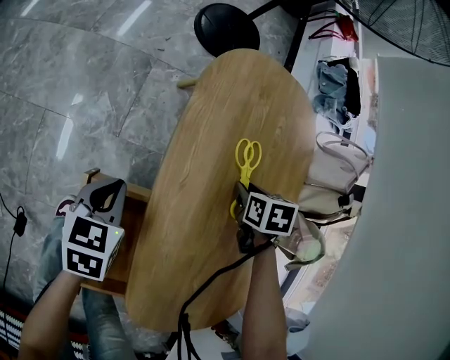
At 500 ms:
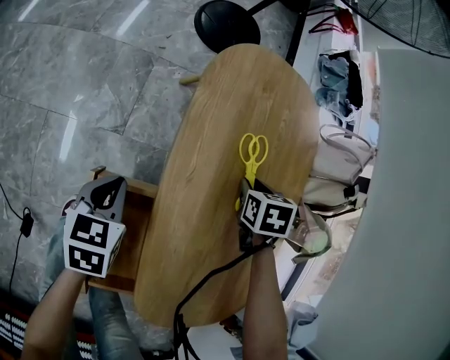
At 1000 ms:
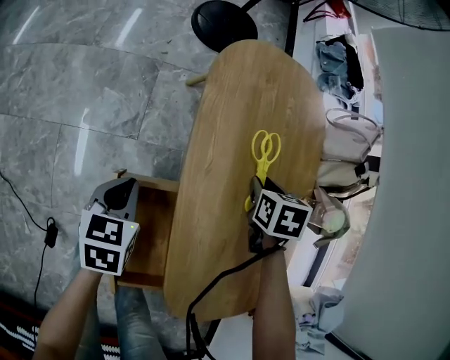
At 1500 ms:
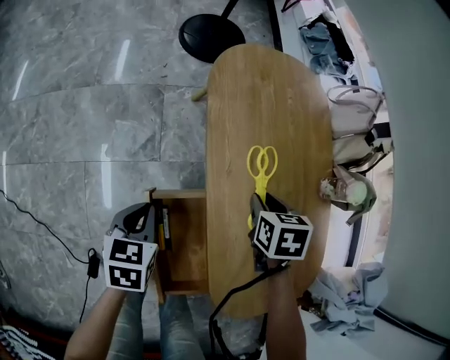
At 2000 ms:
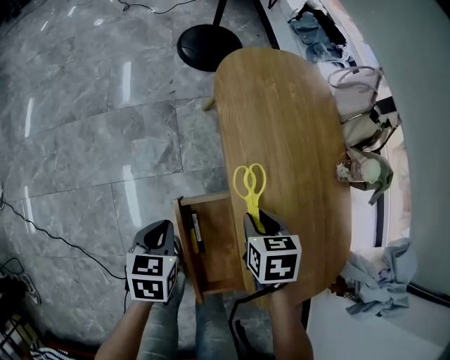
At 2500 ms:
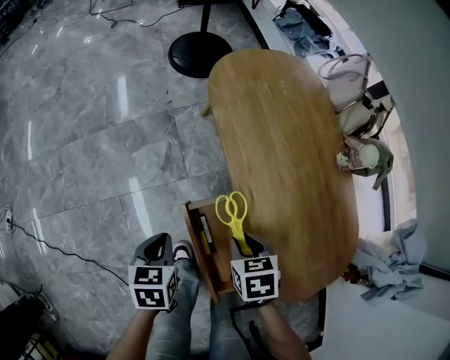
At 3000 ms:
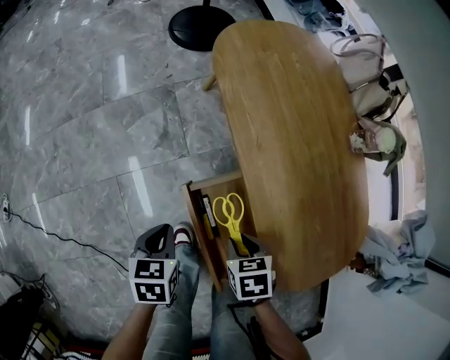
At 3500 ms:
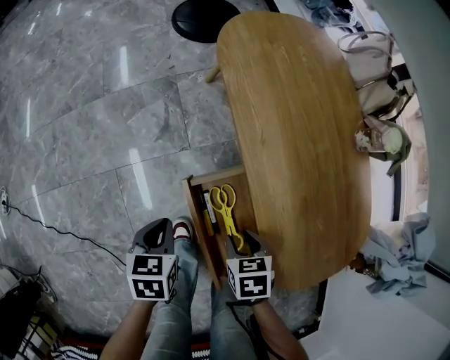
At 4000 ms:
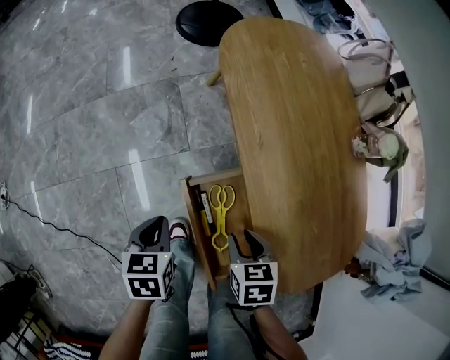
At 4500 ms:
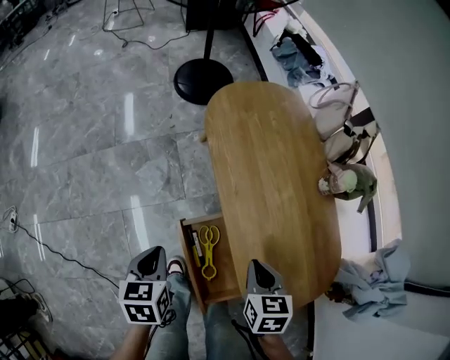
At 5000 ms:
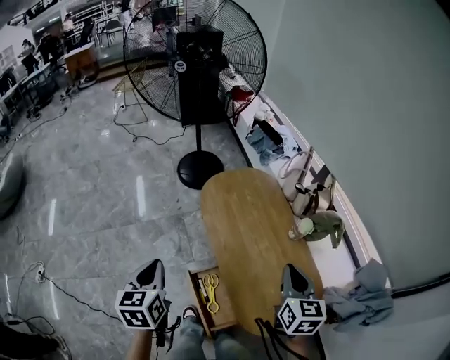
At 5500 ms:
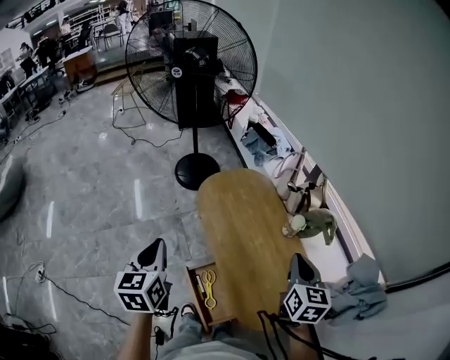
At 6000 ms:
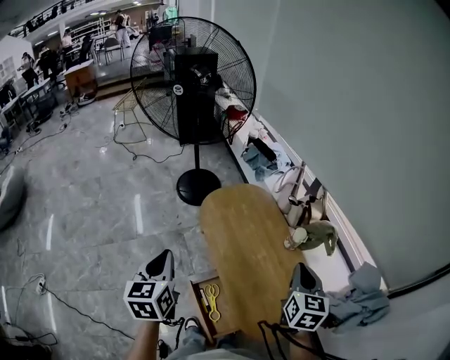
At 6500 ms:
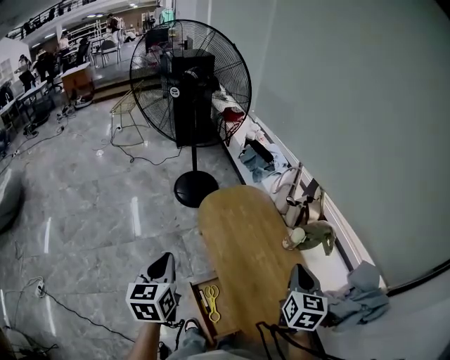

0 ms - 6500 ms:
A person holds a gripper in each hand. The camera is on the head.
0 ms - 2000 ms: The left gripper moves approximately 15 cm; the right gripper moves roughly 30 cm.
2000 ms - 4500 ms: The left gripper shifts some 10 cm upward. The right gripper shifts approximately 15 cm backward and upward, and closes.
4500 ms - 6500 ms: The left gripper heads upward, covering about 35 cm, and rotates some 30 degrees. Meanwhile the right gripper heads upward and to the right, covering roughly 35 cm, and rotates roughly 30 degrees.

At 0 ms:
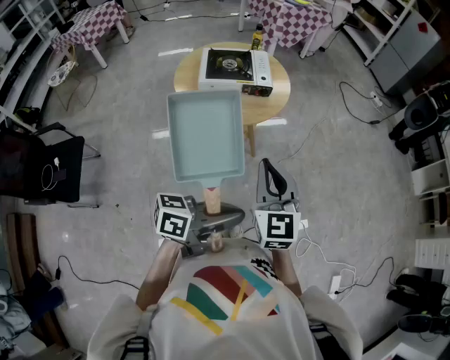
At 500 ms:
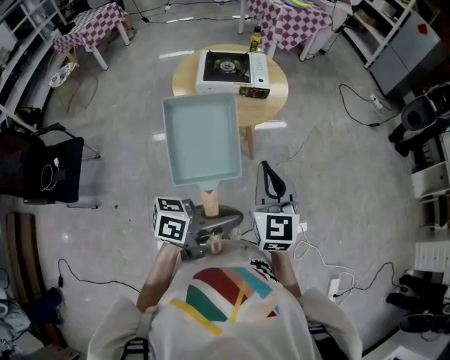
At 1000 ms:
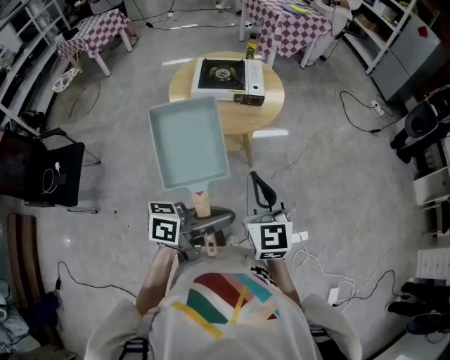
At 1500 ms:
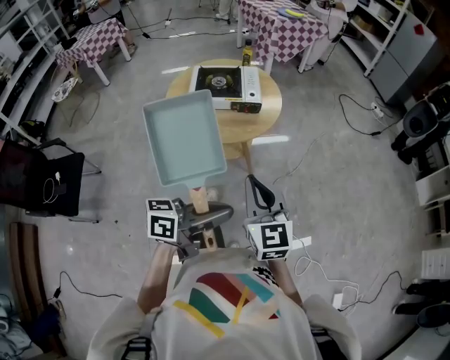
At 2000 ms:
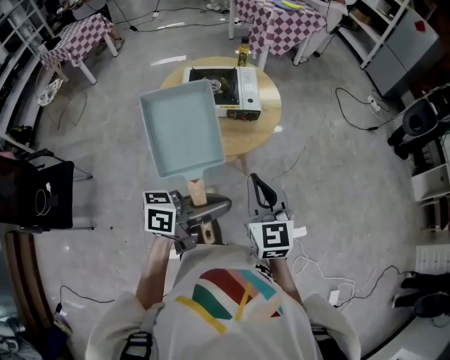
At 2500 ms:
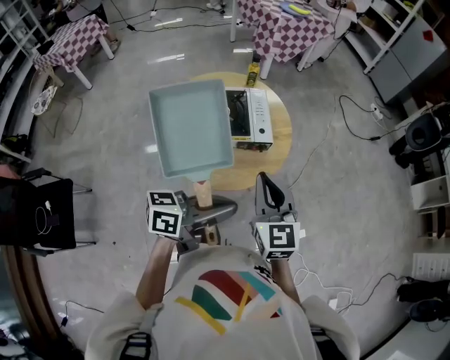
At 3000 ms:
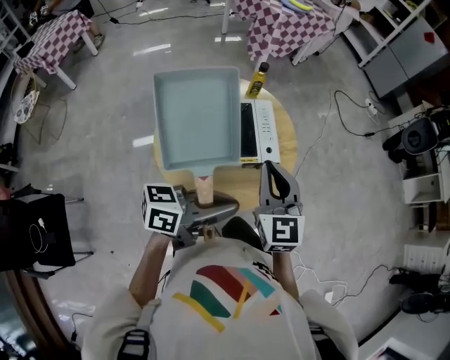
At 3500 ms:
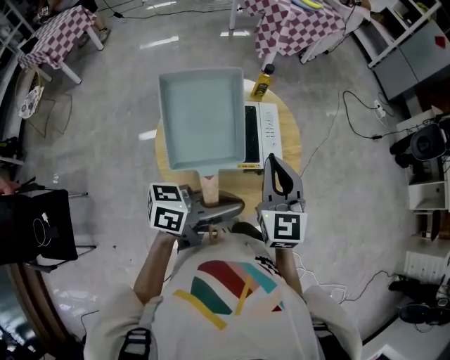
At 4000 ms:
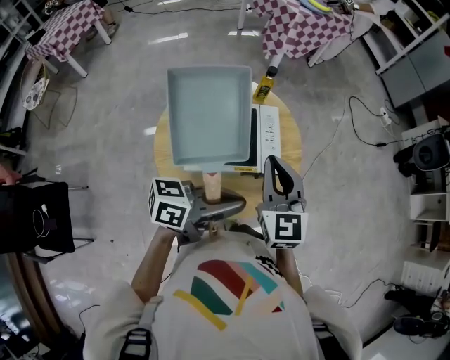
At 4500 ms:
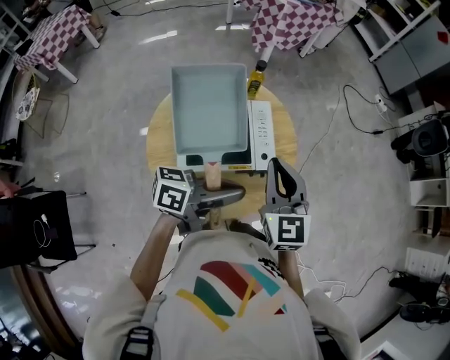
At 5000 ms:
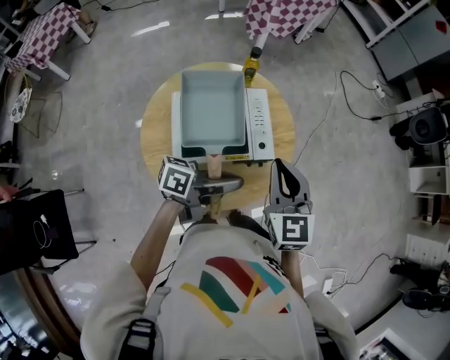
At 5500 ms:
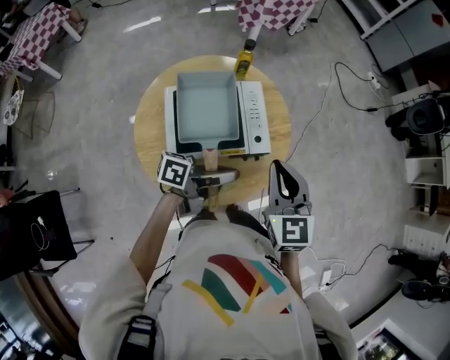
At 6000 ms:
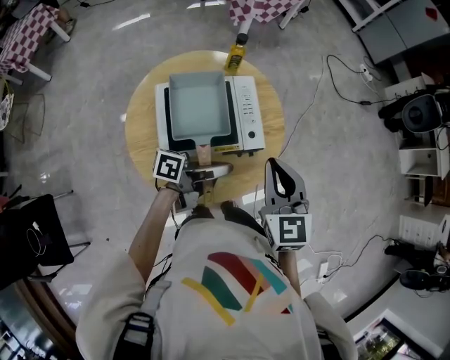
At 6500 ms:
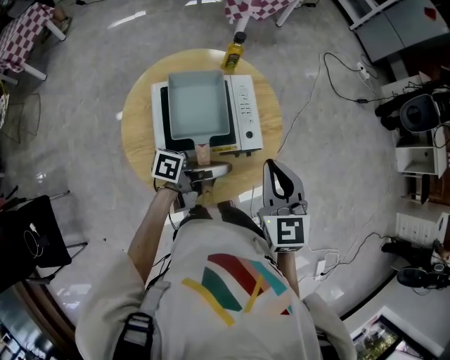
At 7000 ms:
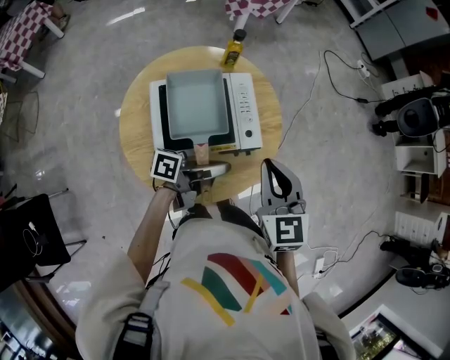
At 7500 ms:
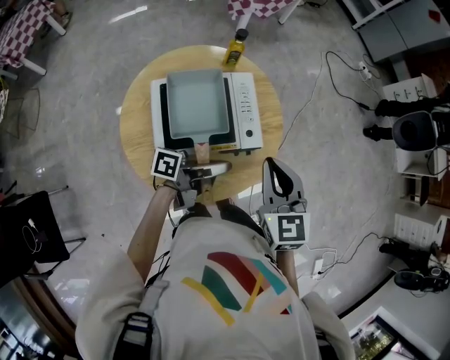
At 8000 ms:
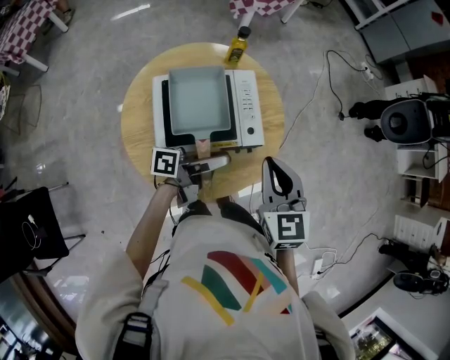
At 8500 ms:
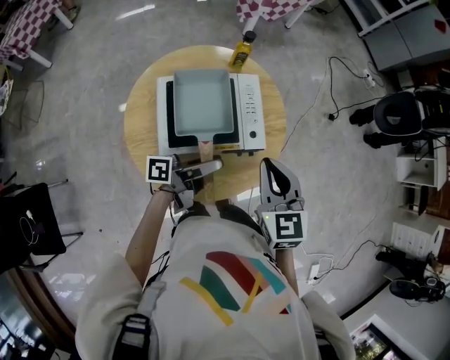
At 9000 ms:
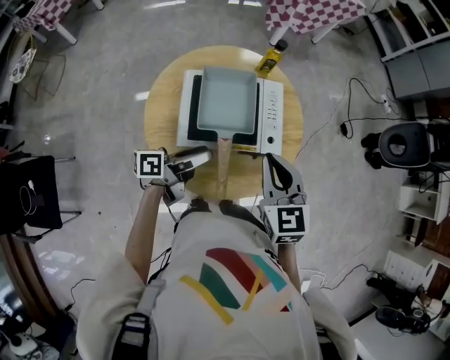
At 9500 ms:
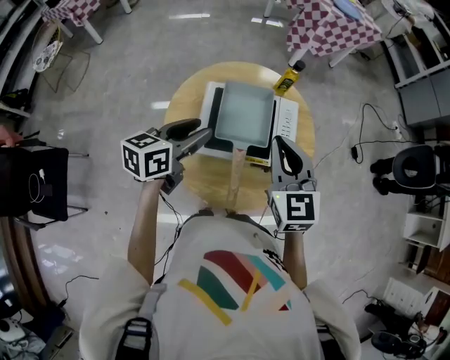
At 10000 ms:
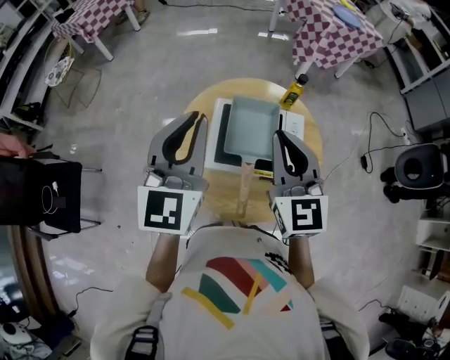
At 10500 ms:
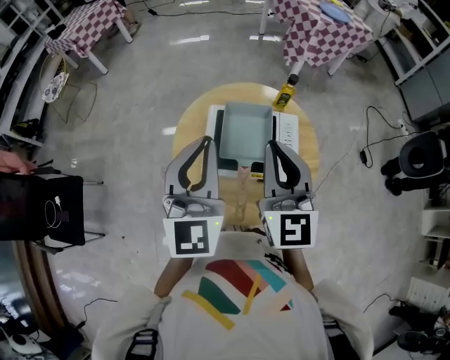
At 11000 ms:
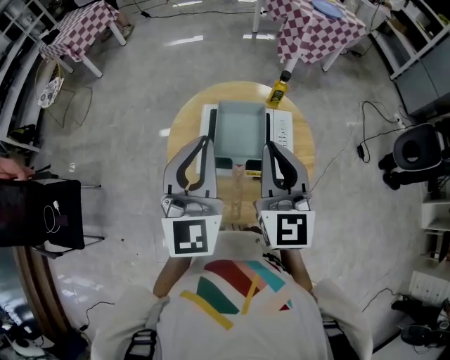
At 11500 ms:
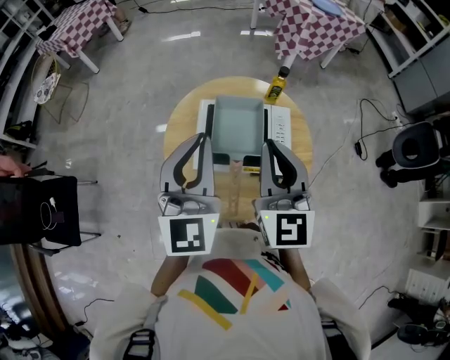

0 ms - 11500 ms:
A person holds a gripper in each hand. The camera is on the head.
0 ms - 2000 ms: The left gripper goes about 15 cm forward and to the left, while the right gripper heads forward, covering roughly 10 cm.
2000 ms - 4000 ms: Both grippers move forward and to the left, roughly 35 cm.
4000 ms - 6000 ms: The left gripper heads downward, covering about 15 cm, and rotates about 30 degrees; the right gripper heads to the right, covering approximately 5 cm.
6000 ms - 7500 ms: The grippers move only a little.
7500 ms - 9500 ms: The left gripper changes place by roughly 20 cm, rotates about 70 degrees, and opens its fingers, while the right gripper shifts by some 10 cm.
9500 ms - 11500 ms: The left gripper goes roughly 15 cm upward, swivels about 60 degrees, and closes. The right gripper travels upward by roughly 10 cm.

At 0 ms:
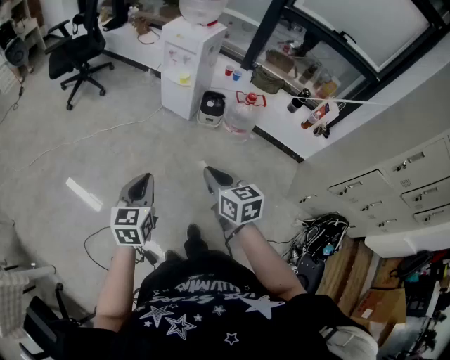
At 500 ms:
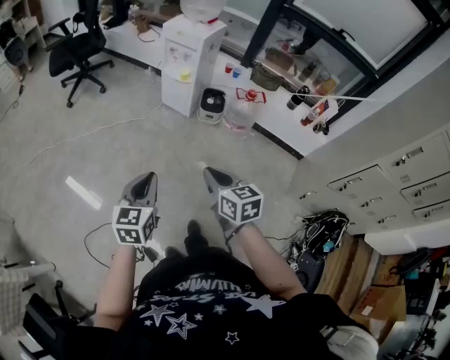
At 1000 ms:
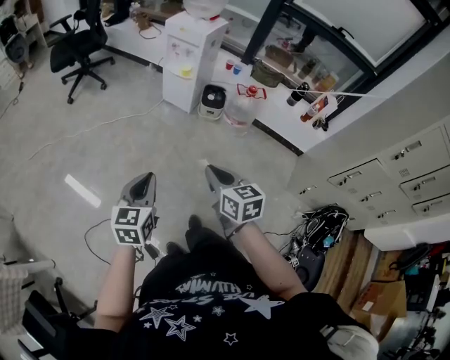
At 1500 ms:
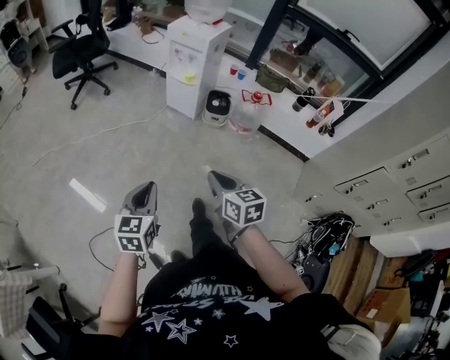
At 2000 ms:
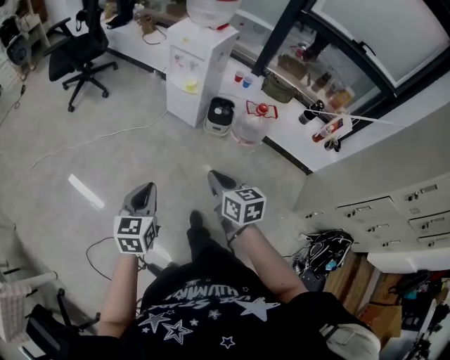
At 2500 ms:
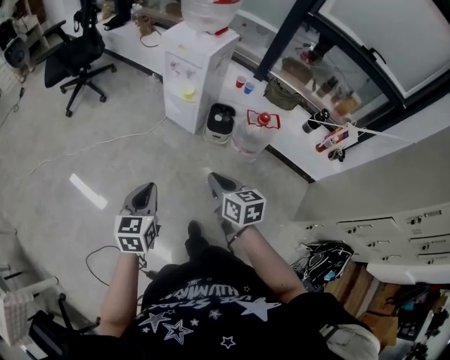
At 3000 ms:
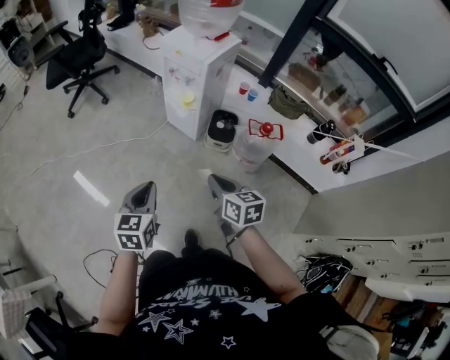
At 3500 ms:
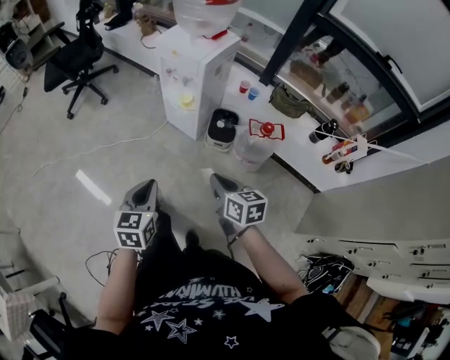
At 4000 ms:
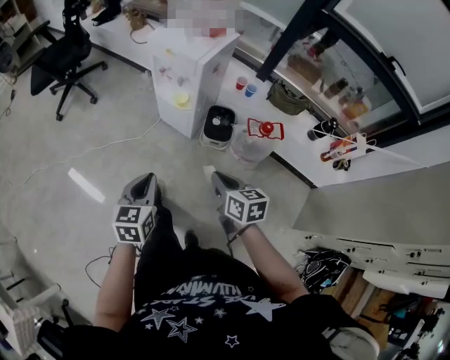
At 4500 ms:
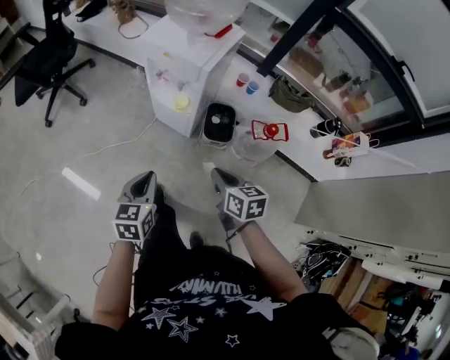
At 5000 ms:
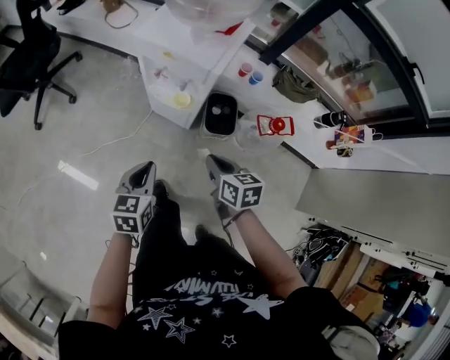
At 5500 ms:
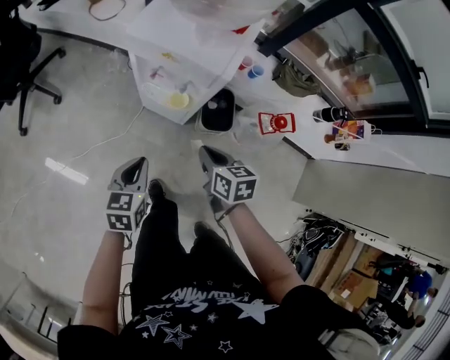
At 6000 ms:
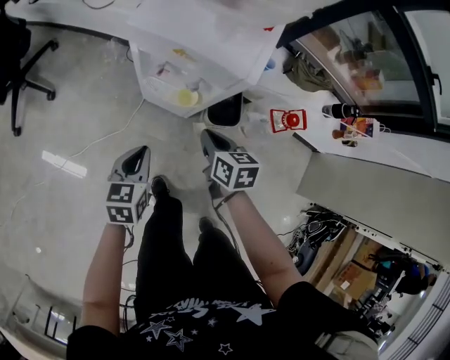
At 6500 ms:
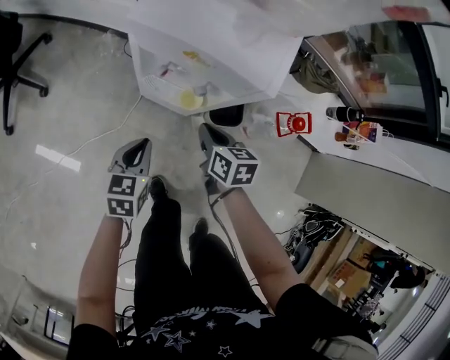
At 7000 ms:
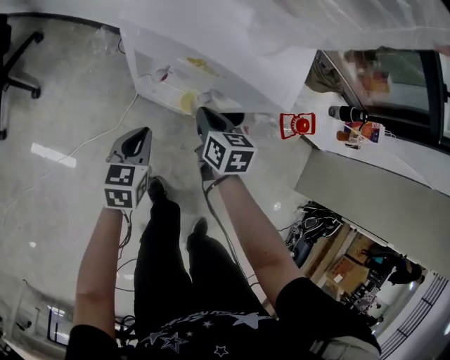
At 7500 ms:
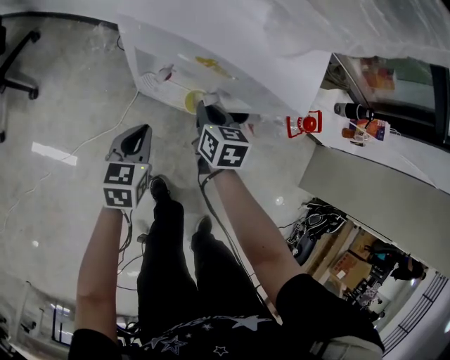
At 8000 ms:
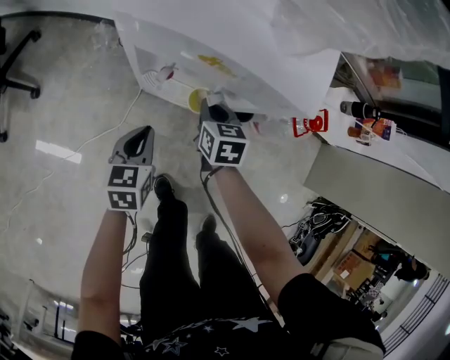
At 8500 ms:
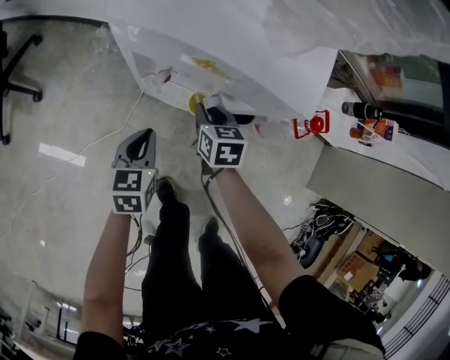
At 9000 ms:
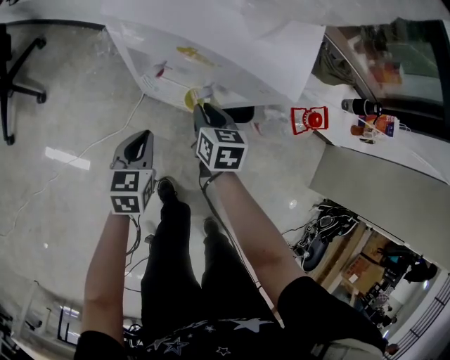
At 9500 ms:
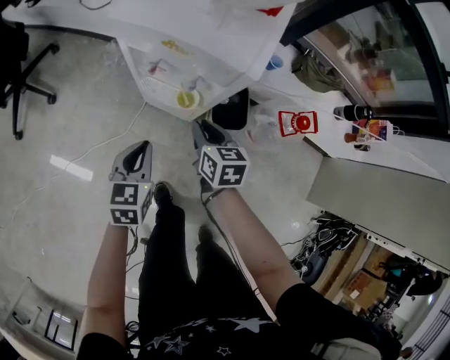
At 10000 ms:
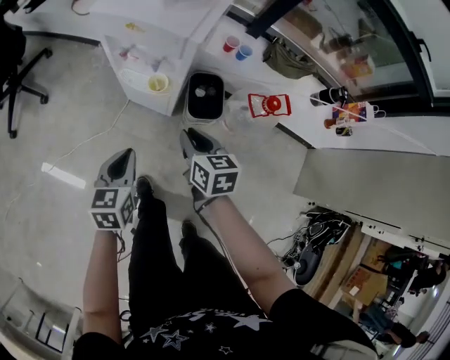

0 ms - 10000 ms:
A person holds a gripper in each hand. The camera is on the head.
0 ms - 2000 ms: Both grippers move forward, some 10 cm.
2000 ms - 4000 ms: The left gripper heads forward, covering some 25 cm, while the right gripper is displaced forward and to the right by roughly 25 cm.
4000 ms - 6000 ms: The left gripper shifts some 35 cm forward and downward, and changes its angle by roughly 20 degrees; the right gripper moves forward, downward and to the left, roughly 40 cm.
6000 ms - 8000 ms: The two grippers go about 15 cm downward and forward.
8000 ms - 10000 ms: Both grippers move backward, upward and to the right, approximately 25 cm.
